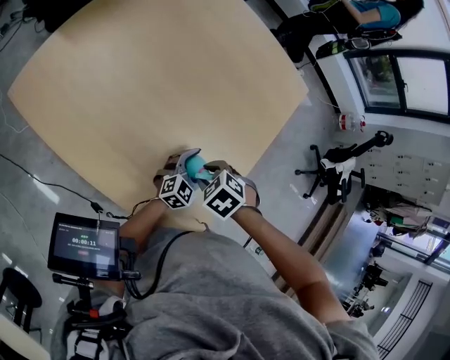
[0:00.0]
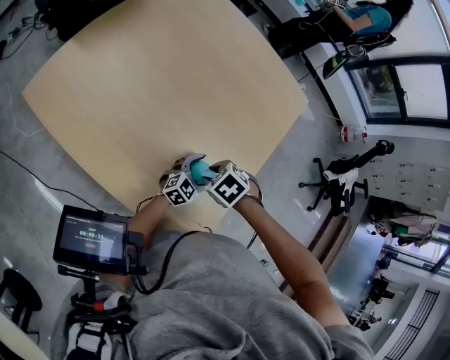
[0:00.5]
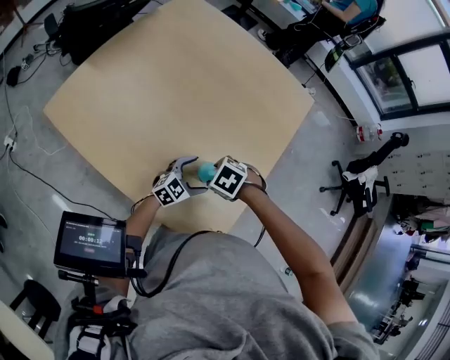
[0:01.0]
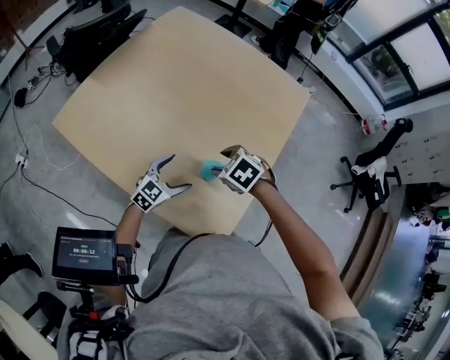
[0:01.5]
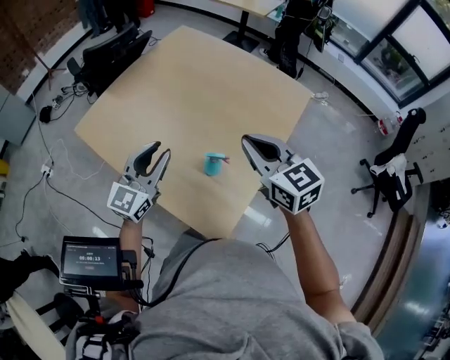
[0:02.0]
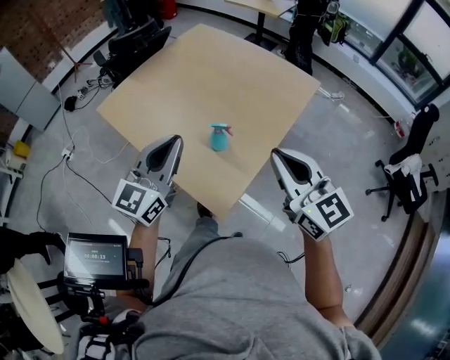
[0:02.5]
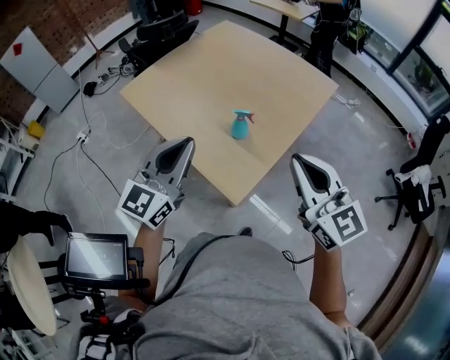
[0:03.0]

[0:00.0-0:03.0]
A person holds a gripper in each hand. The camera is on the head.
0:00.0 to 0:01.5: The right gripper ends up roughly 10 cm from where it was, and opens; the left gripper shifts by about 15 cm.
0:01.5 to 0:03.0: Both grippers move upward and backward, roughly 50 cm. The right gripper points its fingers some 70 degrees further upward, and closes up; the left gripper rotates roughly 40 degrees, and closes its fingers.

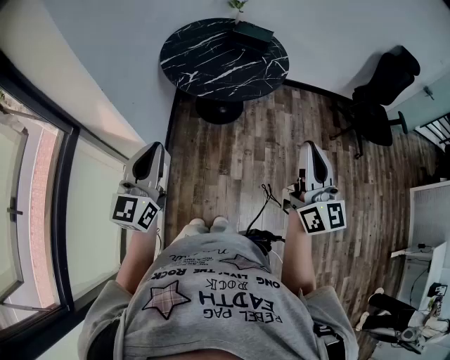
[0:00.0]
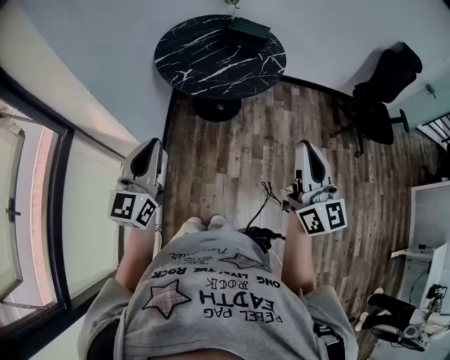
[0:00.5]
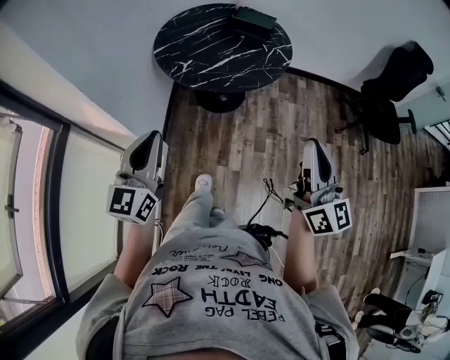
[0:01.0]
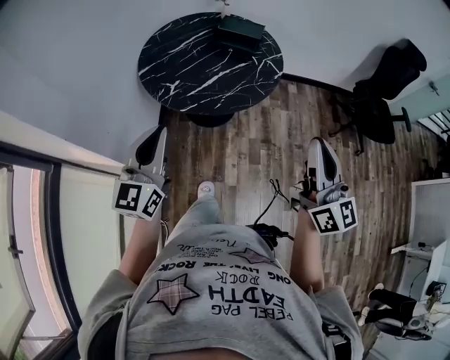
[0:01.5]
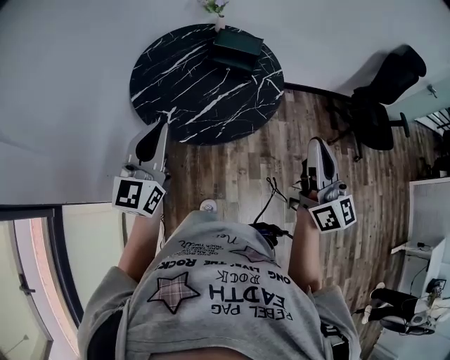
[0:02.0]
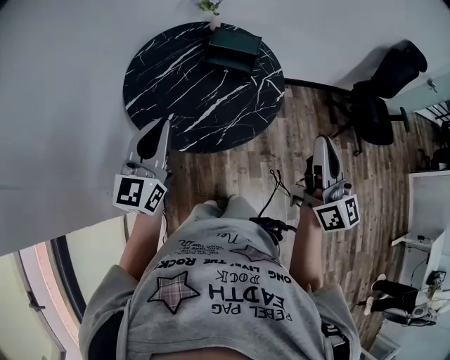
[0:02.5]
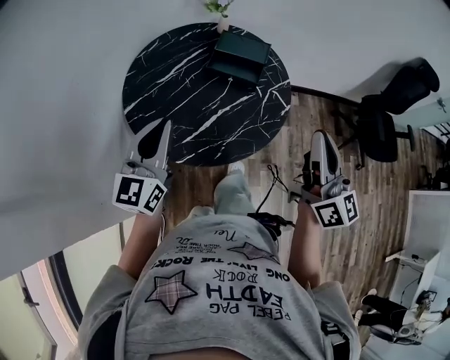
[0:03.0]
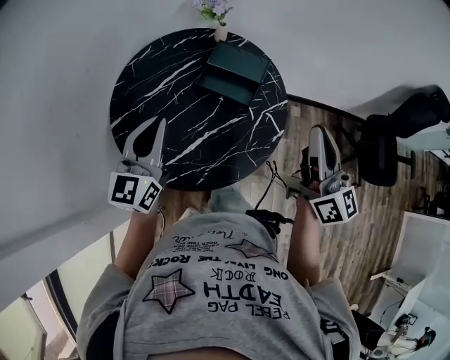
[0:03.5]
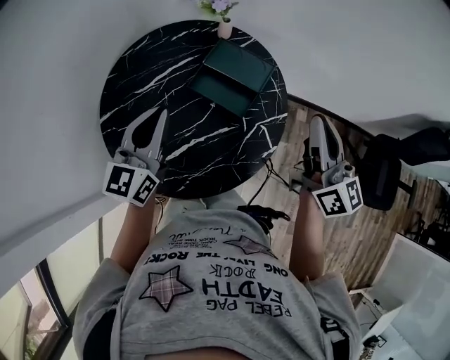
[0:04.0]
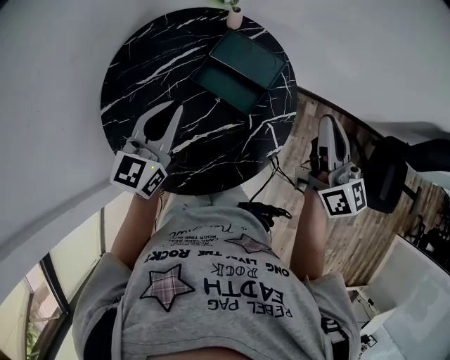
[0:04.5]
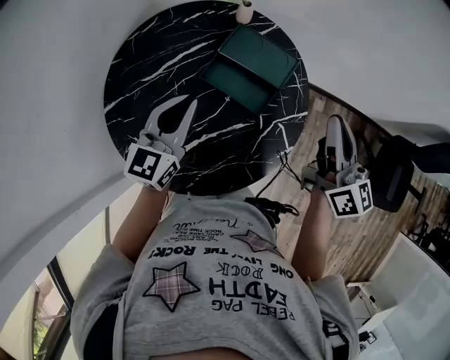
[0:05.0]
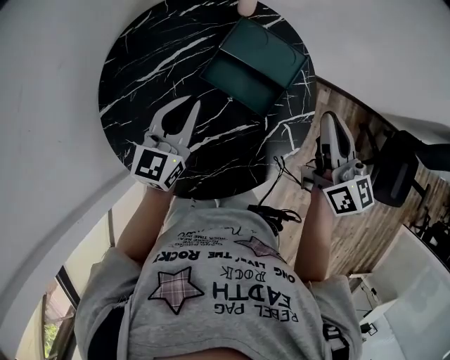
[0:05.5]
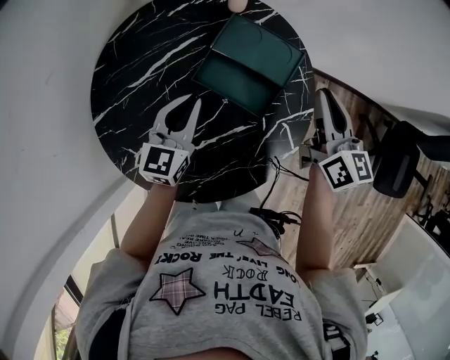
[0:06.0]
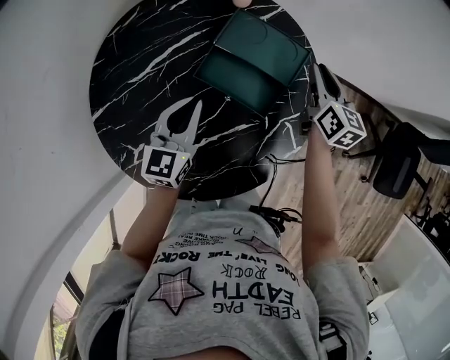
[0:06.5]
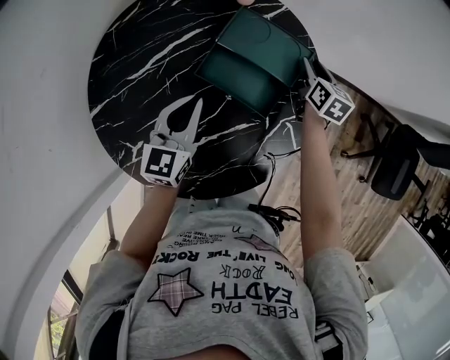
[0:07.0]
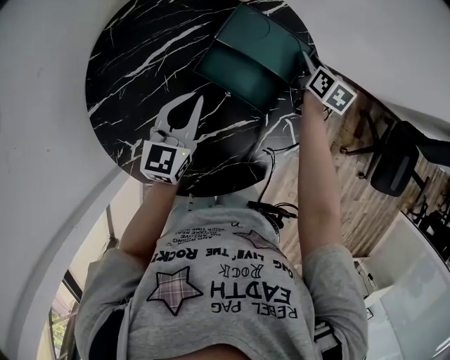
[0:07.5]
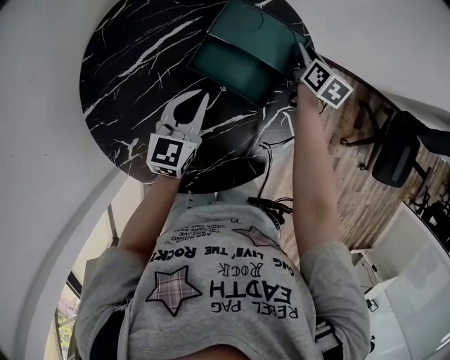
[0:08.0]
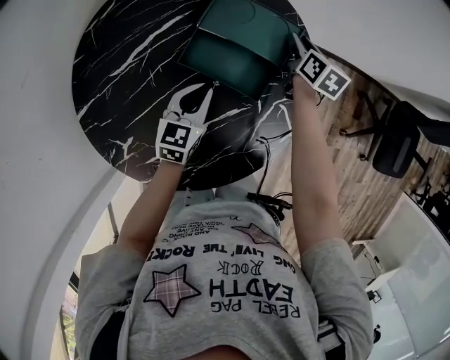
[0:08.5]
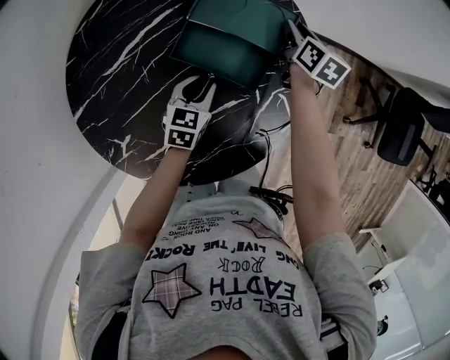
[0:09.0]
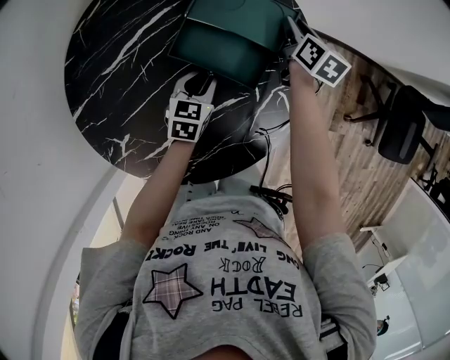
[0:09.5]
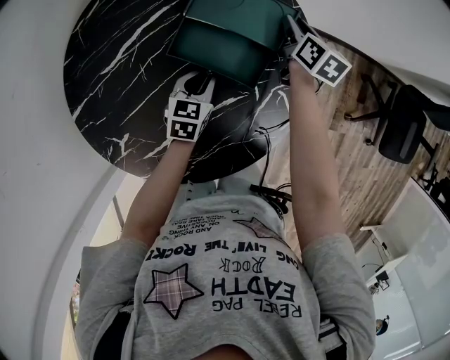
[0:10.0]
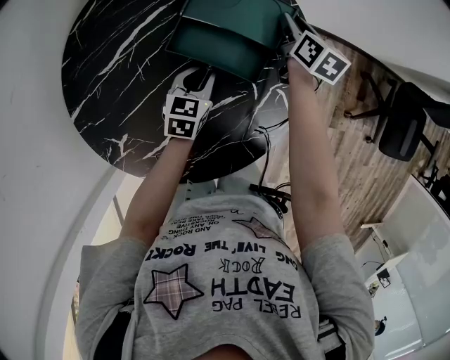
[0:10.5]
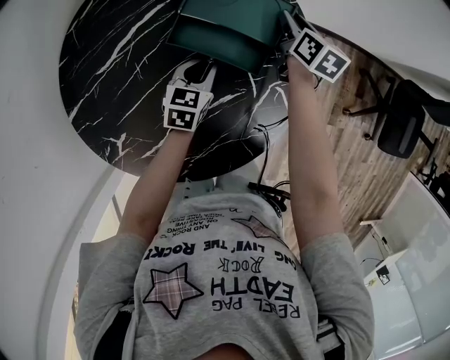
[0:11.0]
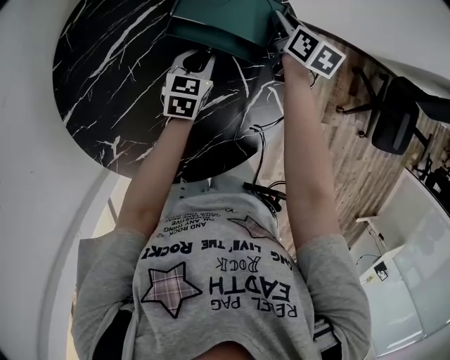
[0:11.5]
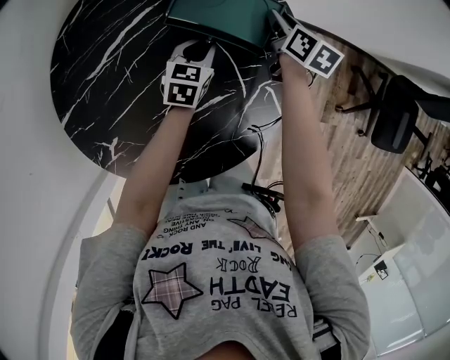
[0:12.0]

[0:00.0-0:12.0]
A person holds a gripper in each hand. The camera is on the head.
0:00.0 to 0:02.0: Both grippers travel together forward, some 30 cm.
0:02.0 to 0:04.0: Both grippers travel together forward, some 40 cm.
0:04.0 to 0:06.0: Both grippers travel together downward and forward, some 20 cm.
0:06.0 to 0:08.0: The right gripper travels downward and forward by approximately 25 cm, rotates approximately 30 degrees, and opens up. The left gripper moves roughly 5 cm.
0:08.0 to 0:10.0: The left gripper shifts approximately 10 cm downward, and turns by about 20 degrees.
0:10.0 to 0:12.0: The left gripper shifts about 10 cm forward.

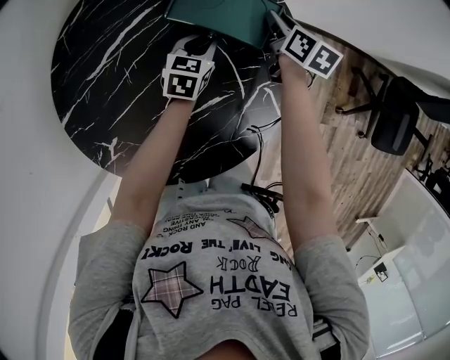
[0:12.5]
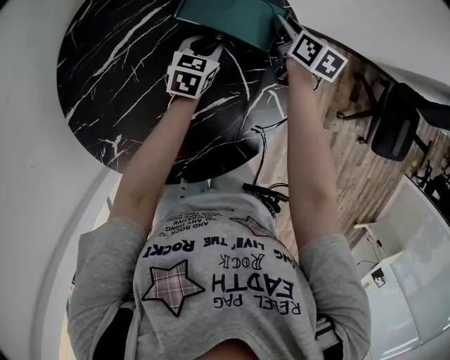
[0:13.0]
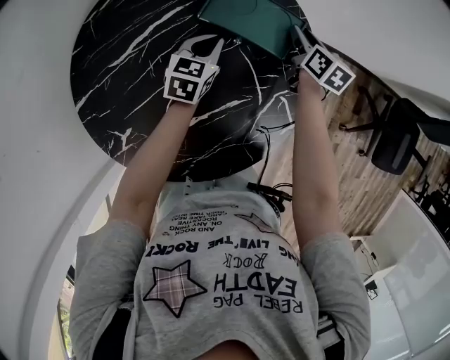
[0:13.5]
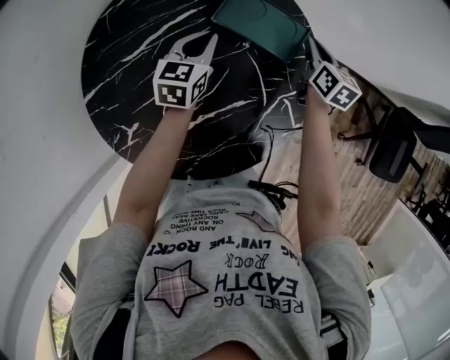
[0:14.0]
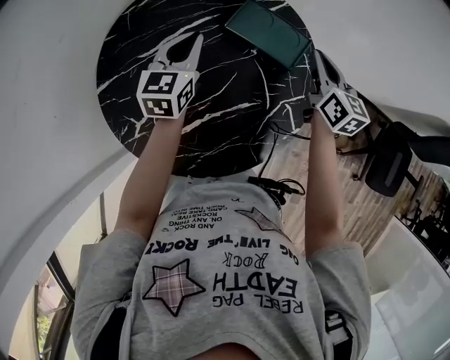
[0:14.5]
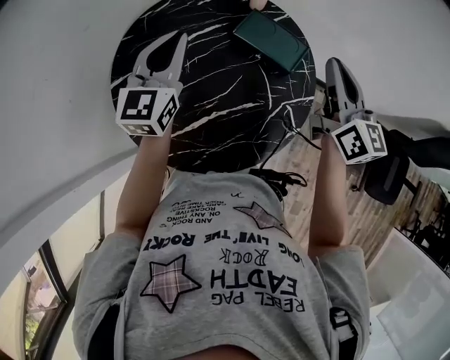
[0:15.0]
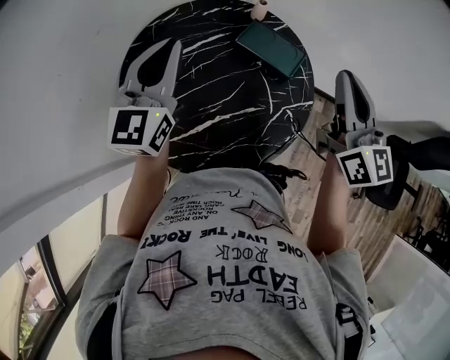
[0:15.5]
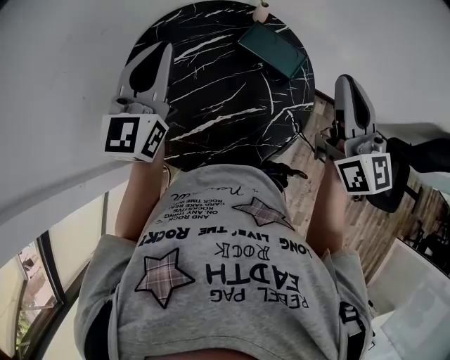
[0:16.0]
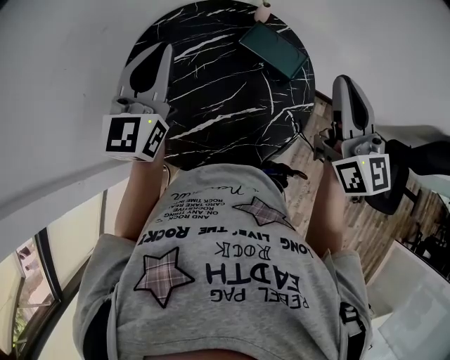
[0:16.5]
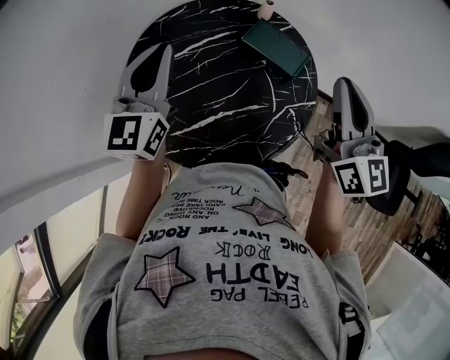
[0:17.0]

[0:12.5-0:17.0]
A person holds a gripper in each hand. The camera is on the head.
0:12.5 to 0:14.5: The left gripper moves upward and to the left, about 25 cm, and changes its angle by some 30 degrees; the right gripper travels upward and backward by approximately 20 cm, turns by some 30 degrees, and closes.
0:14.5 to 0:17.0: The right gripper goes approximately 30 cm upward and backward, and changes its angle by about 30 degrees; the left gripper is displaced upward, backward and to the left by about 25 cm, and swivels approximately 20 degrees.

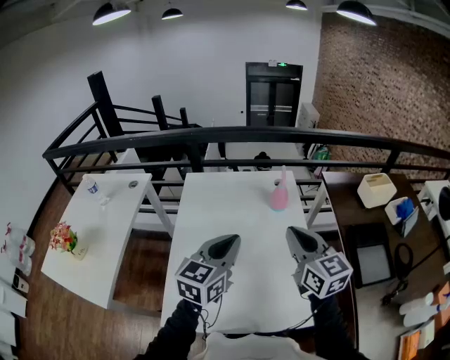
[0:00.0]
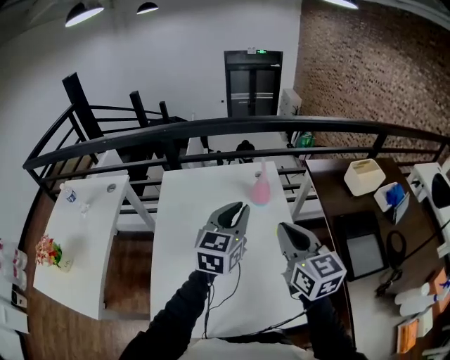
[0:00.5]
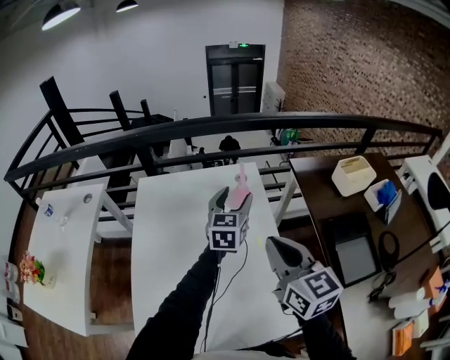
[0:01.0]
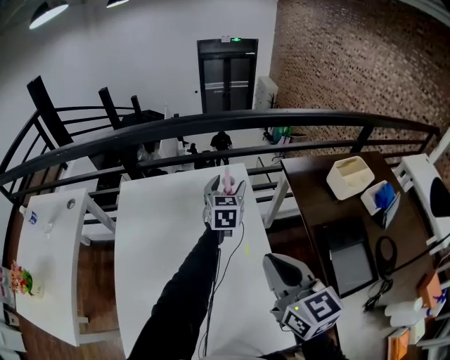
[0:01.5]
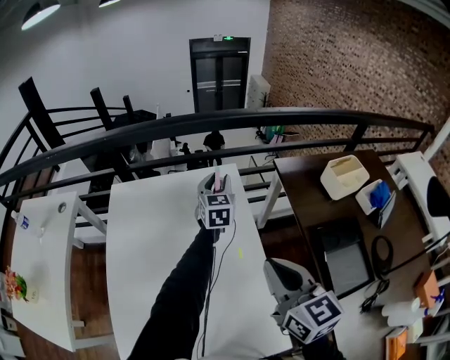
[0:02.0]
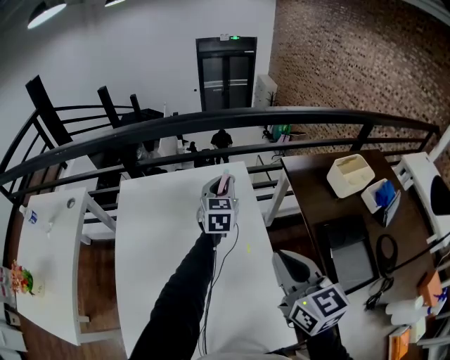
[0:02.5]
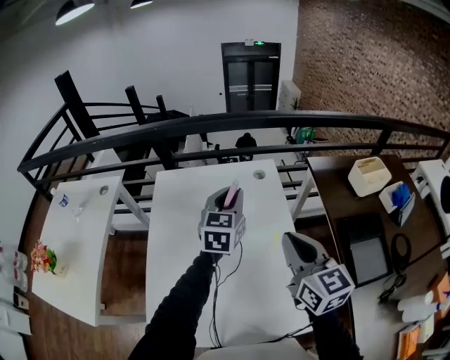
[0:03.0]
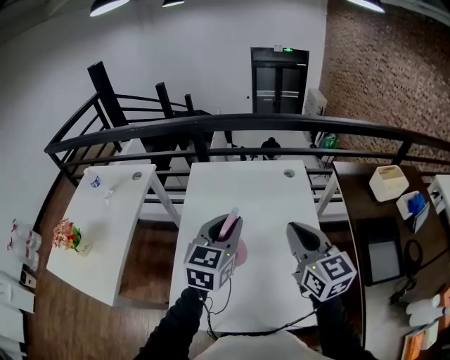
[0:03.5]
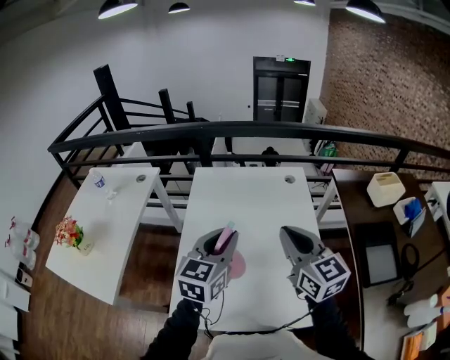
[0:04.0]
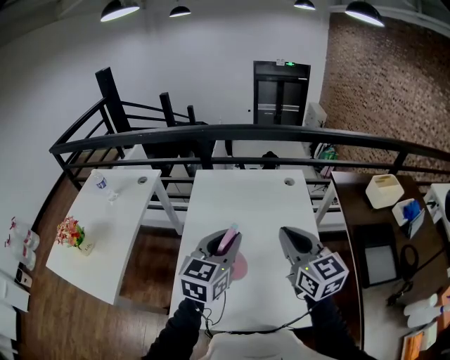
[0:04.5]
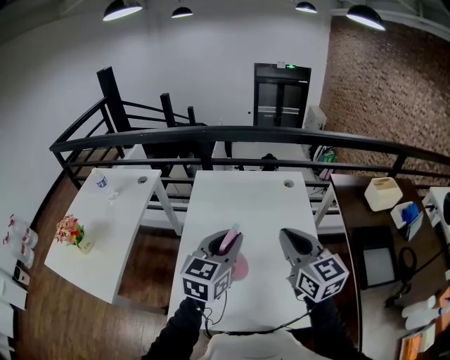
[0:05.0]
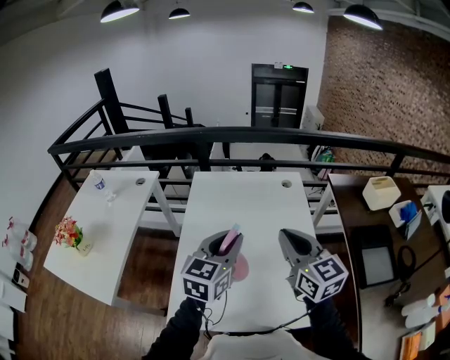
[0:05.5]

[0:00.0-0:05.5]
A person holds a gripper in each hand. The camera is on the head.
0:00.0 to 0:02.0: The right gripper is displaced to the right, forward and downward by about 20 cm, while the left gripper shifts roughly 50 cm forward and to the right, and opens up.
0:02.0 to 0:03.5: The left gripper heads backward and to the left, covering about 50 cm; the right gripper shifts about 20 cm to the left and backward.
0:03.5 to 0:05.5: Both grippers travel together backward, some 5 cm.

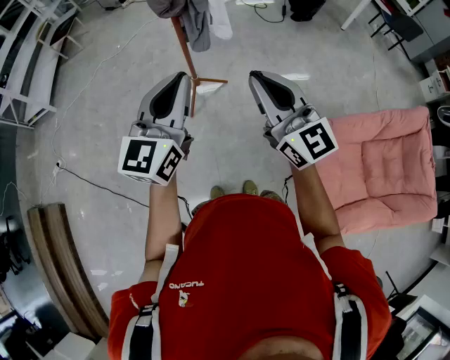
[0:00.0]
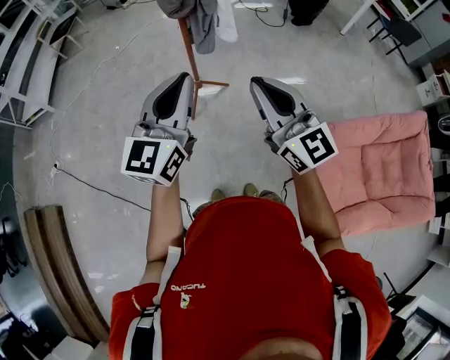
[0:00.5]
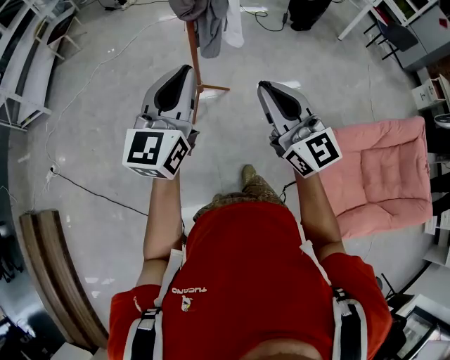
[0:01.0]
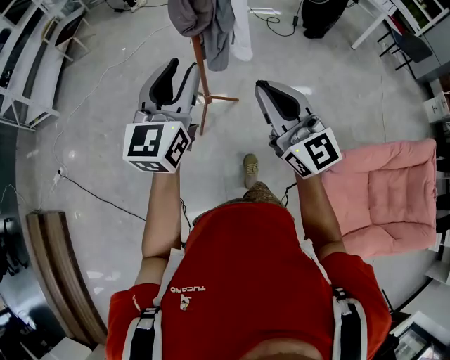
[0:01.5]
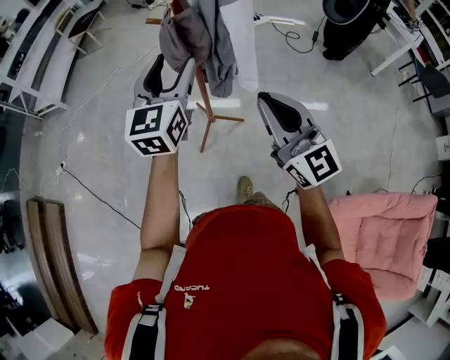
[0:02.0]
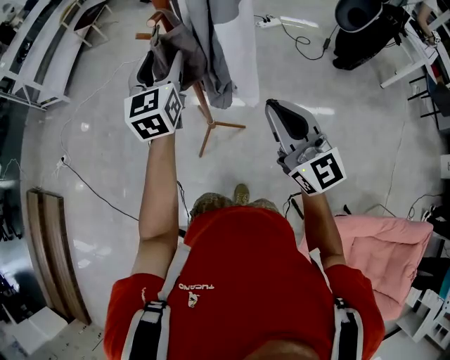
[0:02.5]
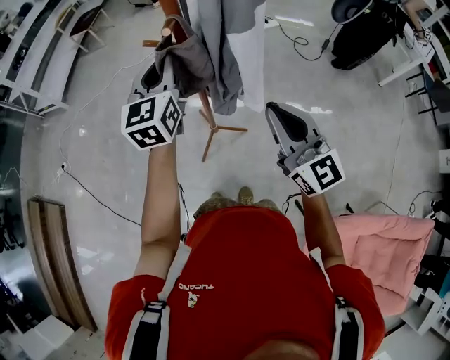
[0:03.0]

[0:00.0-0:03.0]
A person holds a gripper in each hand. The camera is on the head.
0:00.0 to 0:01.5: The grippers both shift forward by about 10 cm. The left gripper opens up.
0:01.5 to 0:03.0: The right gripper shifts roughly 25 cm forward and to the right; the left gripper heads forward, covering roughly 30 cm, turns by roughly 20 degrees, and closes its fingers.
